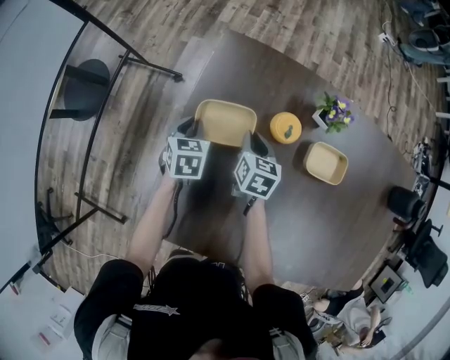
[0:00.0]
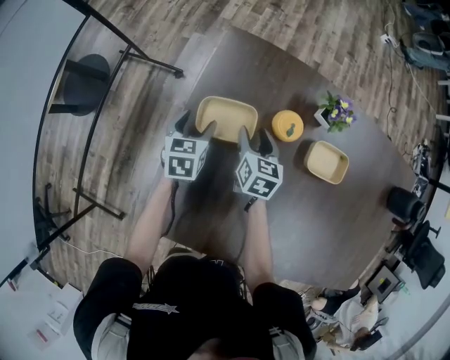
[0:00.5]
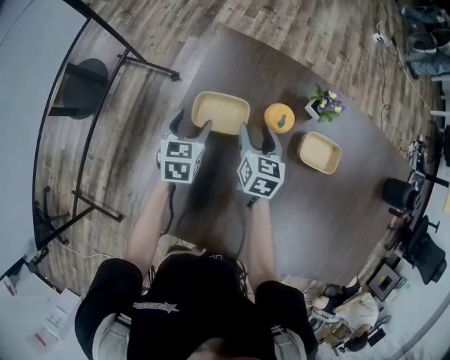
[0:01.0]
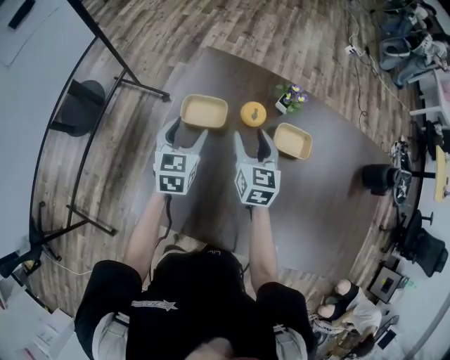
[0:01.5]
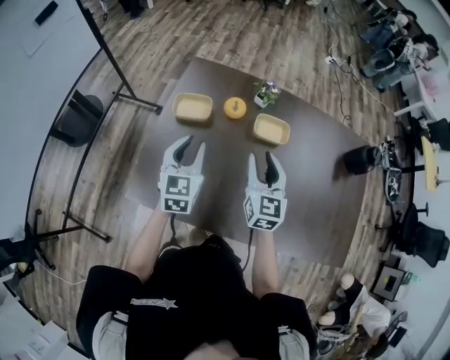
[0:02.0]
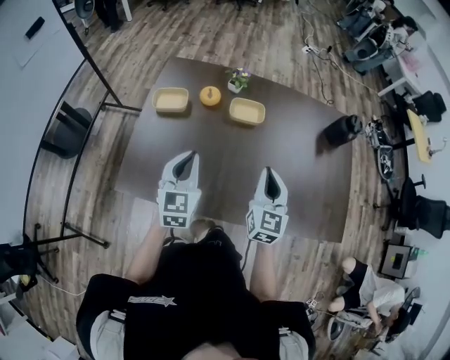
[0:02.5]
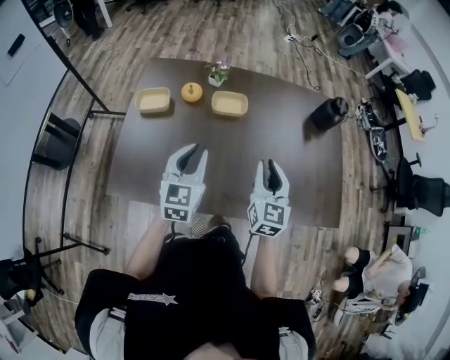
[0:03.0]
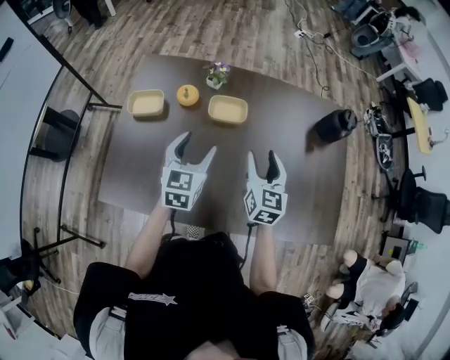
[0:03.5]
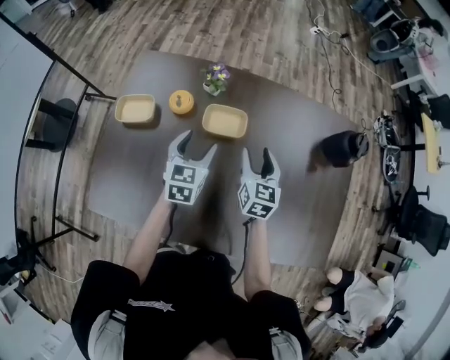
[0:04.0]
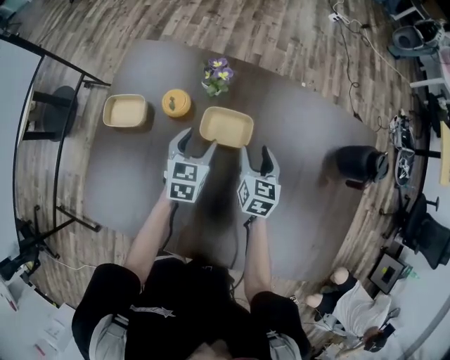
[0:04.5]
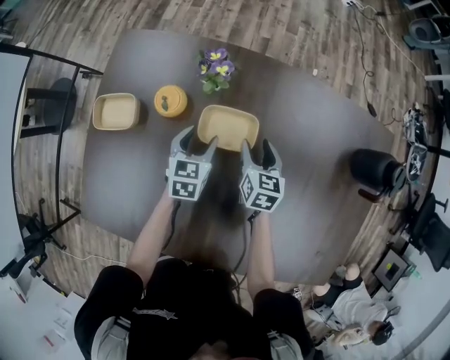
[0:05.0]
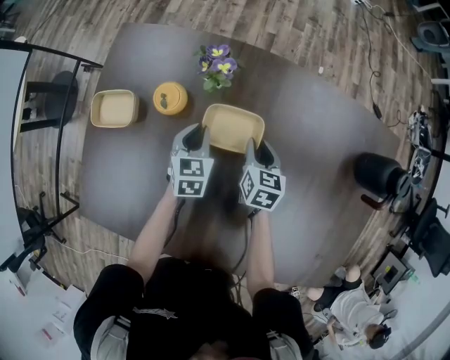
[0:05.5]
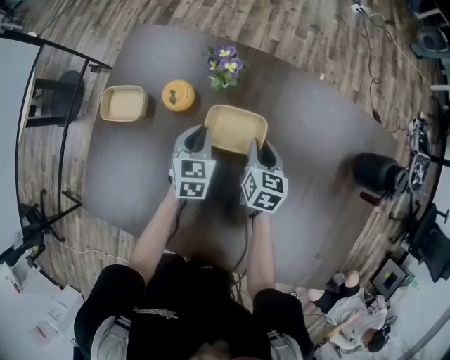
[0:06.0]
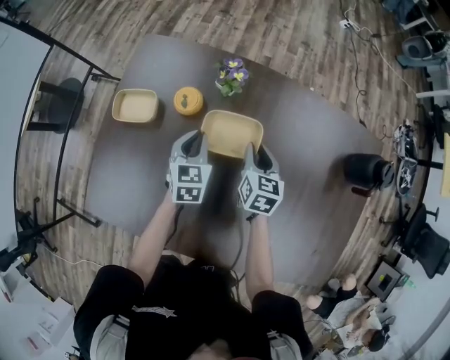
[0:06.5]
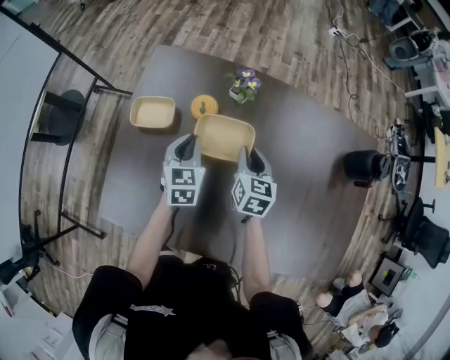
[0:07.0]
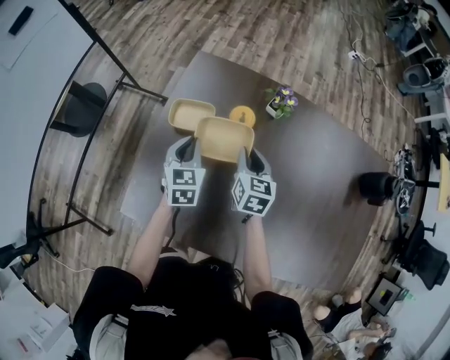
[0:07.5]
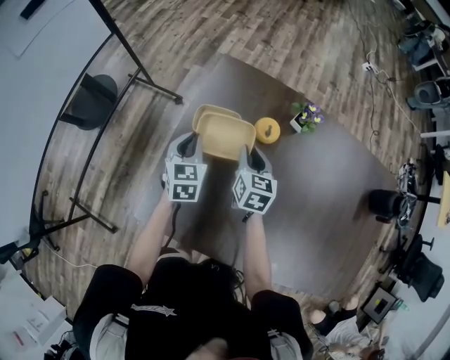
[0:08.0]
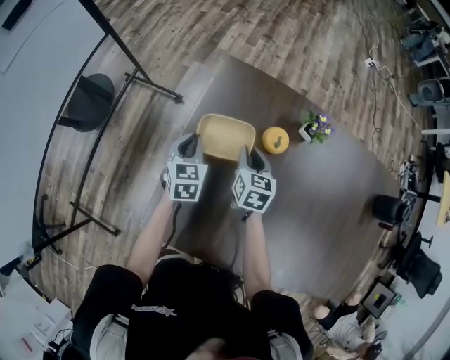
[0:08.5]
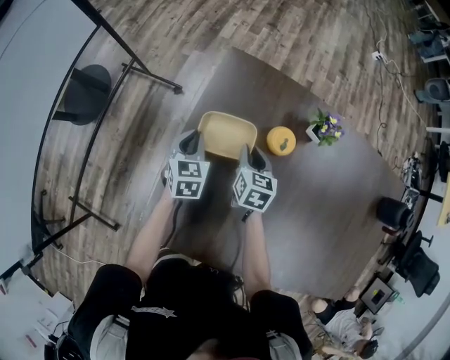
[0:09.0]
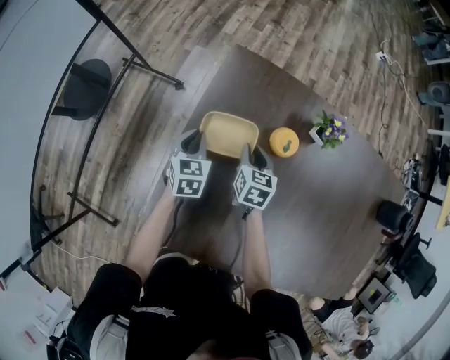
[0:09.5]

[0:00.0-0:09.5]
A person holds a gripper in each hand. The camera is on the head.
0:00.0 to 0:02.0: Both grippers travel together upward, backward and to the right, about 35 cm. The left gripper tips its fingers upward by roughly 30 degrees, and opens, then closes again; the right gripper angles its fingers upward, by about 30 degrees, and opens up.
0:02.0 to 0:04.0: The right gripper moves to the right, forward and downward, roughly 25 cm, and closes, then opens again. Meanwhile the left gripper heads to the right and forward, covering roughly 25 cm, and opens.
0:04.0 to 0:05.5: Both grippers travel together downward and forward, about 20 cm. The left gripper closes. Meanwhile the right gripper turns by some 20 degrees, and closes.
0:05.5 to 0:07.5: The two grippers go approximately 30 cm to the left and upward.
0:07.5 to 0:09.5: Both grippers move to the left, downward and forward, about 20 cm.

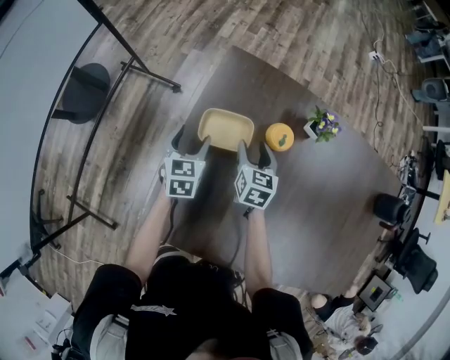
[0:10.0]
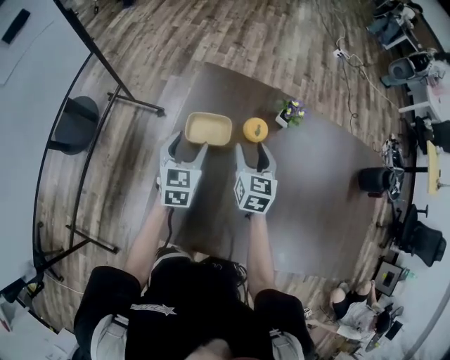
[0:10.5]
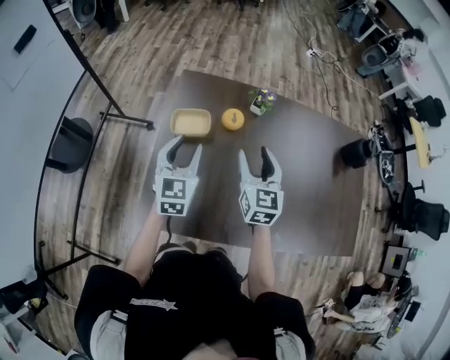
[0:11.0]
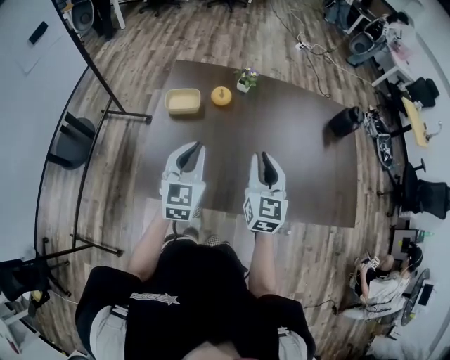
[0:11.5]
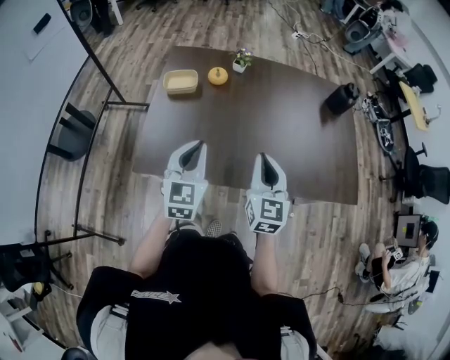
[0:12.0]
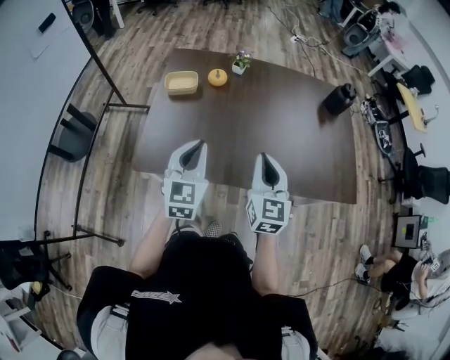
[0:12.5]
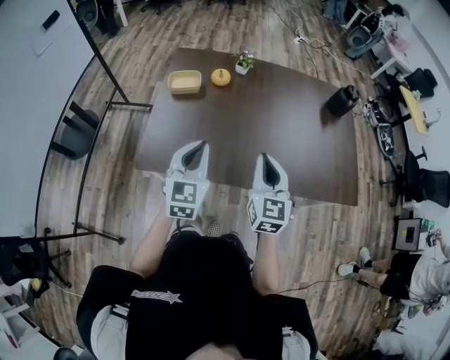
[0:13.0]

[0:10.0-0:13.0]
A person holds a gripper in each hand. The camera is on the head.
0:10.0 to 0:11.5: The grippers both shift backward, upward and to the right by about 40 cm. The left gripper rotates approximately 30 degrees, and closes up. Meanwhile the right gripper swivels roughly 30 degrees, and closes its fingers.
0:11.5 to 0:13.0: The grippers both shift backward by roughly 10 cm.

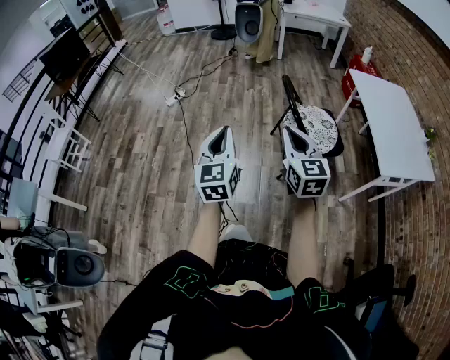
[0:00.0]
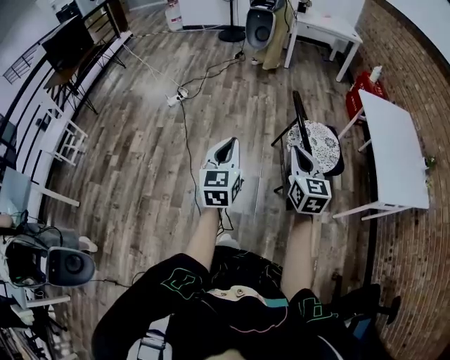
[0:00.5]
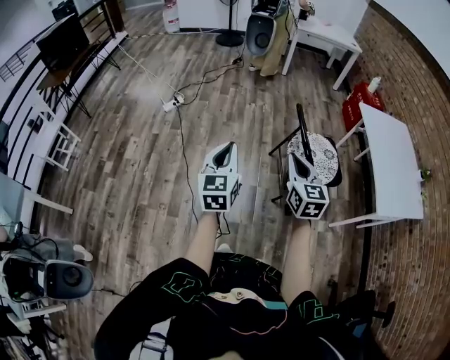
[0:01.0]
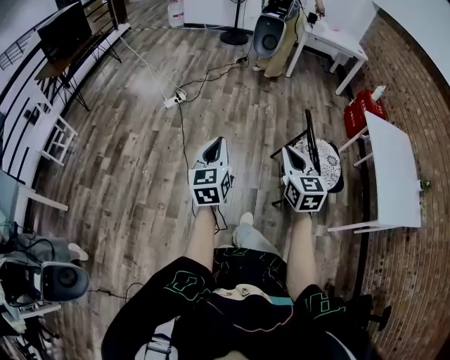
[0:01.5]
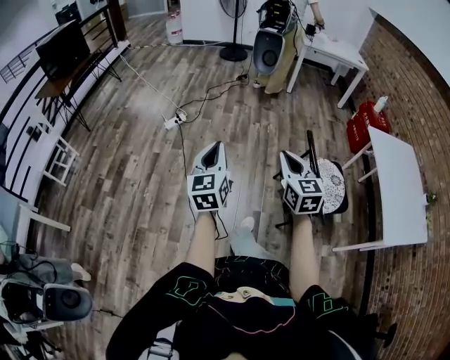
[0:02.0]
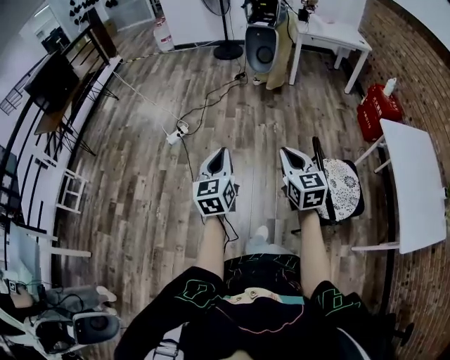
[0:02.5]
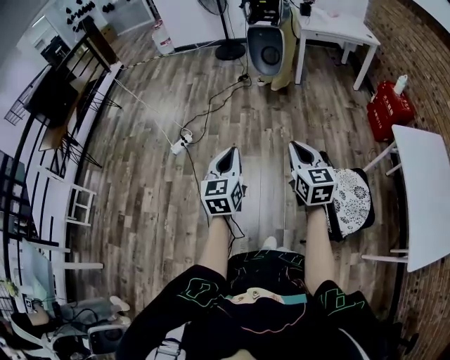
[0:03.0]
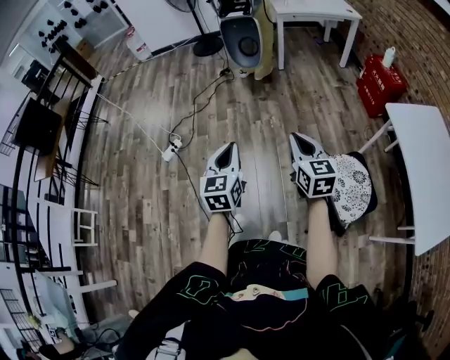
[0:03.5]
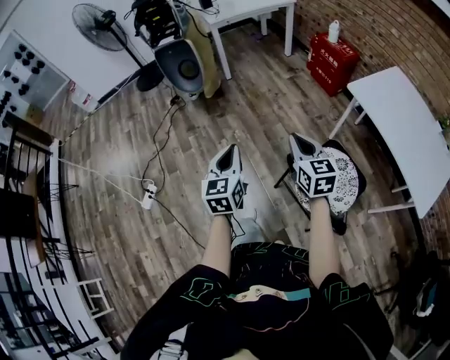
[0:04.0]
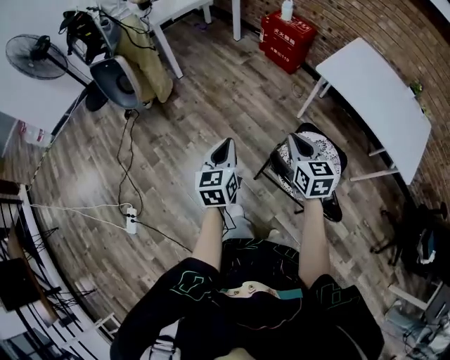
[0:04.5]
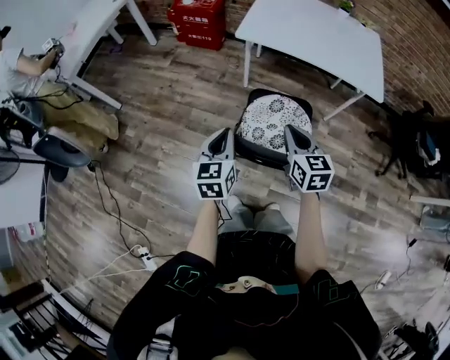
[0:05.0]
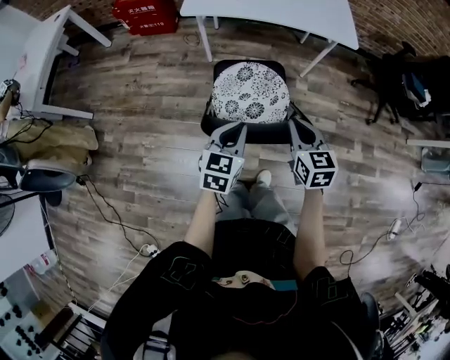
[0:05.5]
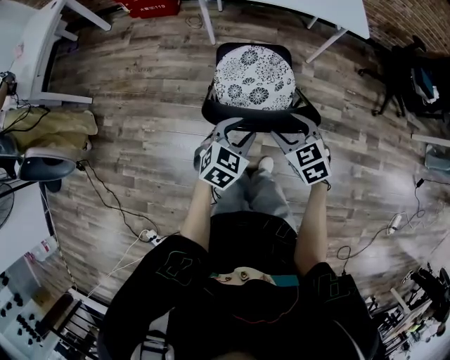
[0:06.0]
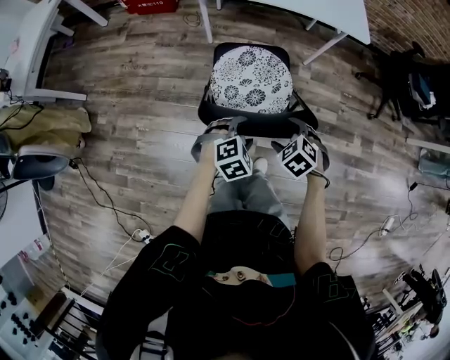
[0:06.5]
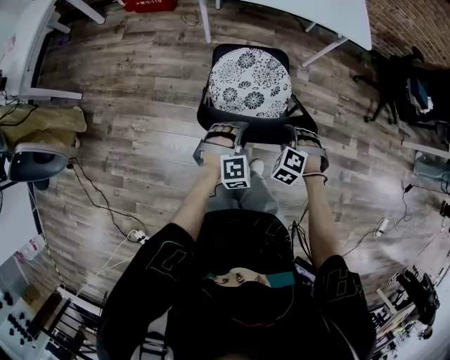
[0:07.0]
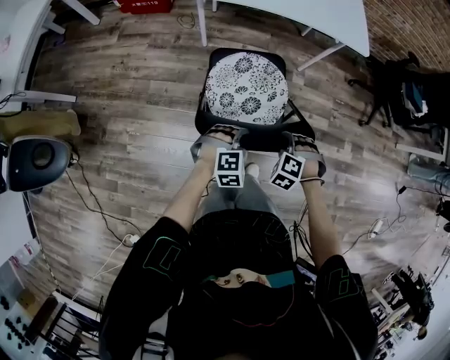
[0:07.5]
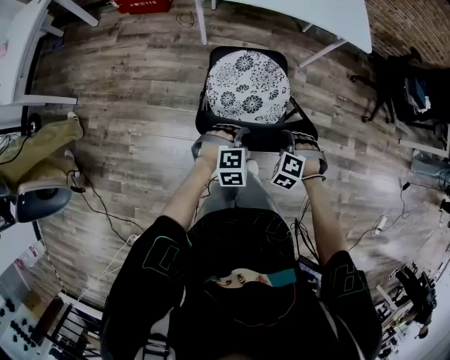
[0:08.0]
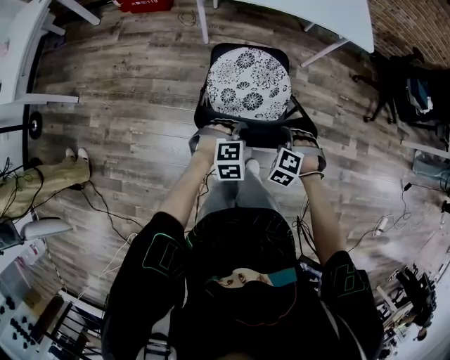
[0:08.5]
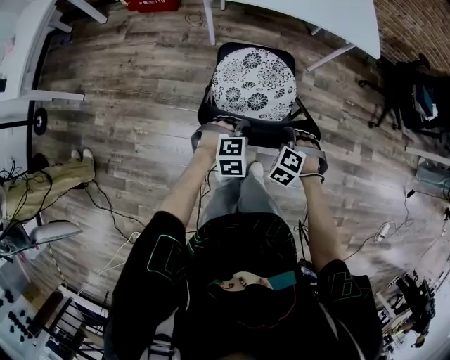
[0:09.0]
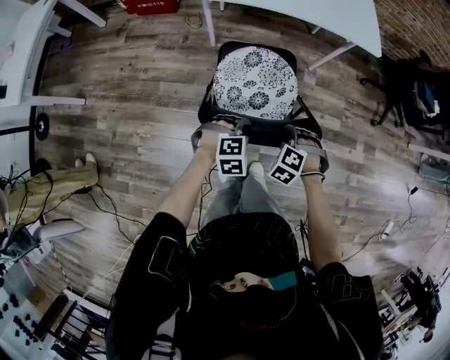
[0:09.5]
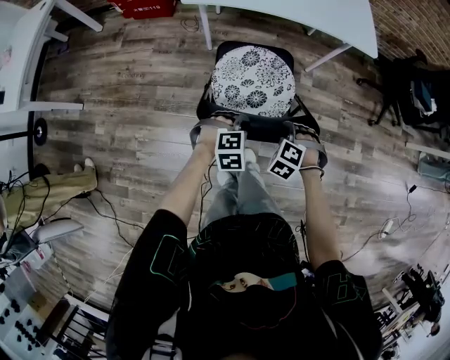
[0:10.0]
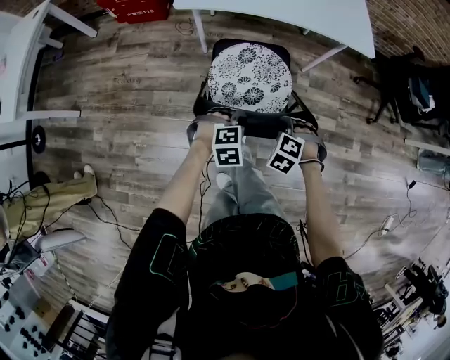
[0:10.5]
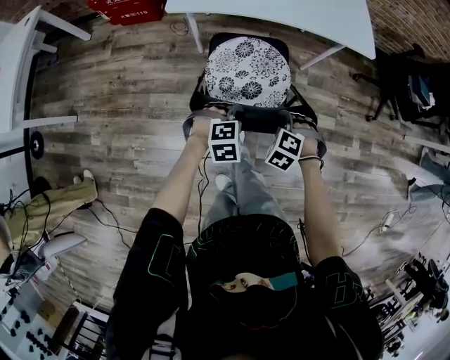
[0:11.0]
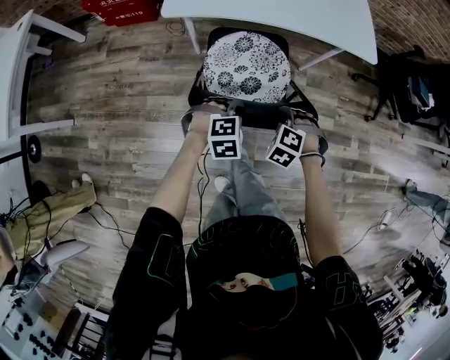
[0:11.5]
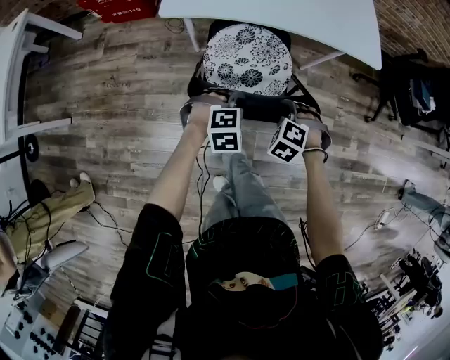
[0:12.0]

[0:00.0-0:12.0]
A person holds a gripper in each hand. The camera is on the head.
0:00.0 to 0:02.0: The two grippers go about 30 cm forward and to the left.
0:02.0 to 0:04.0: Both grippers are carried roughly 50 cm. The right gripper changes its angle by some 30 degrees; the left gripper changes its angle by roughly 40 degrees.
0:04.0 to 0:06.0: The right gripper changes place by roughly 30 cm, turns by approximately 50 degrees, and opens its fingers. Meanwhile the left gripper moves about 35 cm, swivels roughly 100 degrees, and opens its fingers.
0:06.0 to 0:08.0: Both grippers move downward, about 10 cm. The left gripper rolls clockwise, seen from behind, by roughly 40 degrees. Meanwhile the right gripper rolls counterclockwise, seen from behind, by about 40 degrees, and closes its fingers.
0:08.0 to 0:10.0: The grippers both shift to the left by roughly 5 cm.
0:10.0 to 0:12.0: The two grippers go some 15 cm forward and to the left.

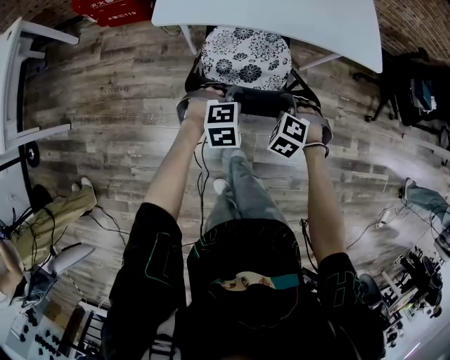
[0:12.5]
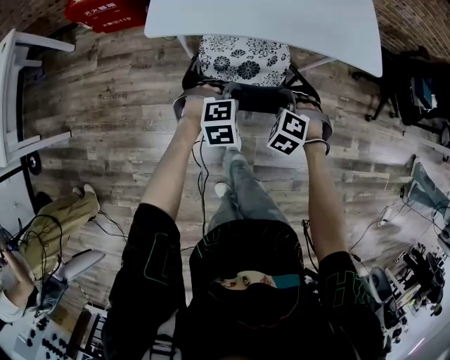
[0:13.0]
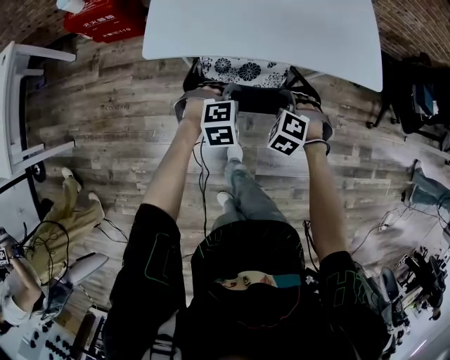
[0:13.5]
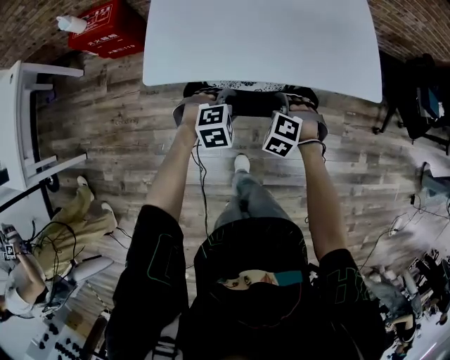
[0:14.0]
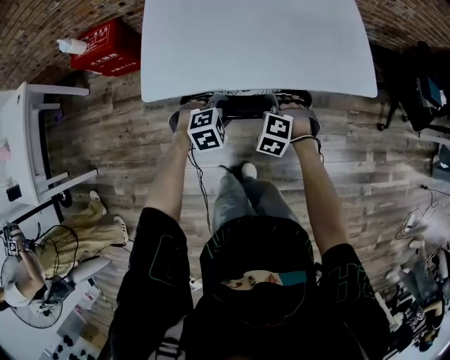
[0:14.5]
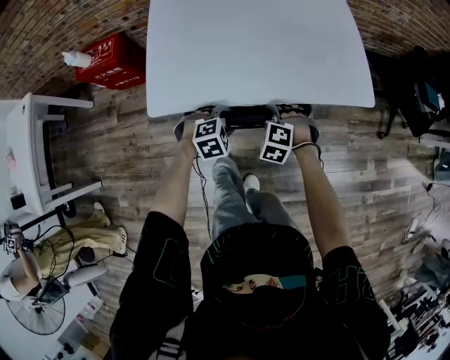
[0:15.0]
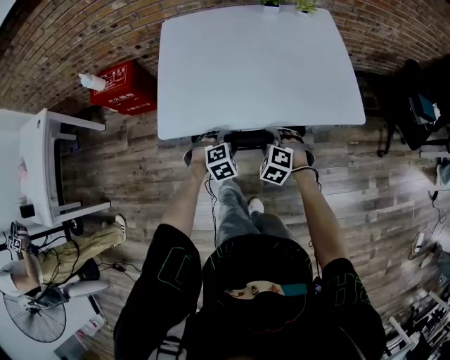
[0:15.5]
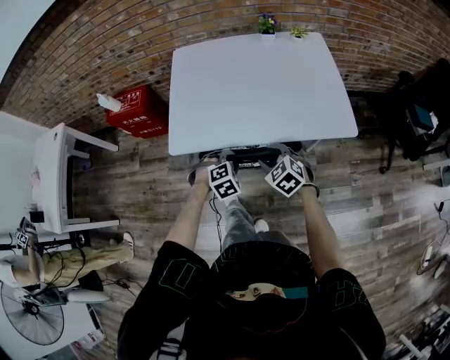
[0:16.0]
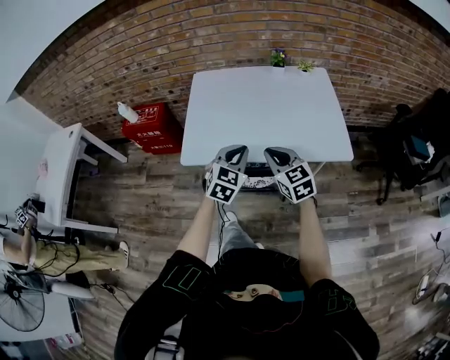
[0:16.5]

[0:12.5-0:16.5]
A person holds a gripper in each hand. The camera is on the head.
0:12.5 to 0:14.5: Both grippers move forward and to the left, roughly 15 cm.
0:14.5 to 0:16.5: The grippers both shift upward by roughly 25 cm. The right gripper tilts its fingers about 50 degrees upward. The left gripper points its fingers approximately 40 degrees further upward, and closes up.
